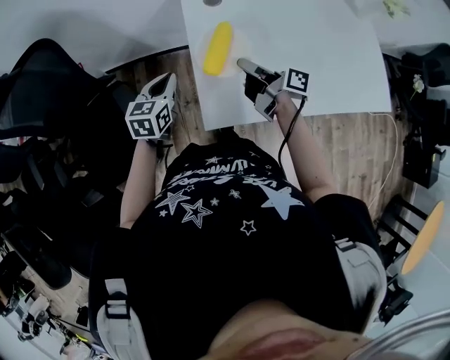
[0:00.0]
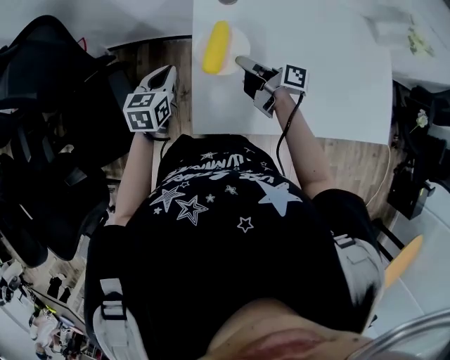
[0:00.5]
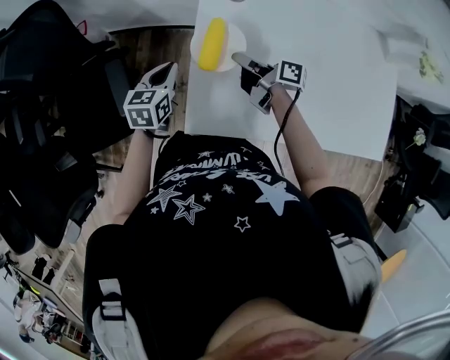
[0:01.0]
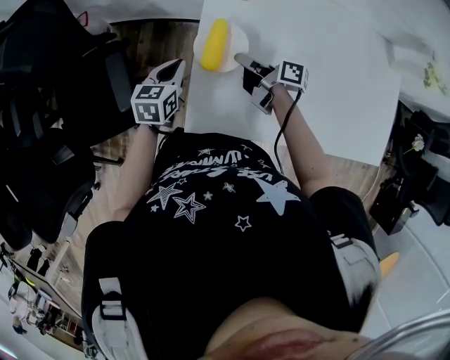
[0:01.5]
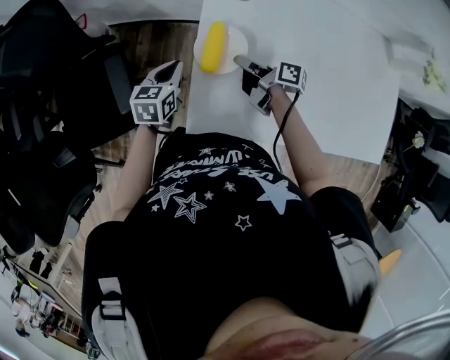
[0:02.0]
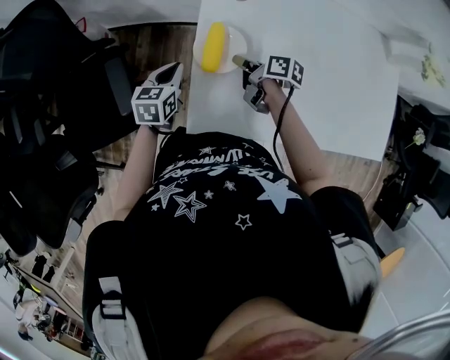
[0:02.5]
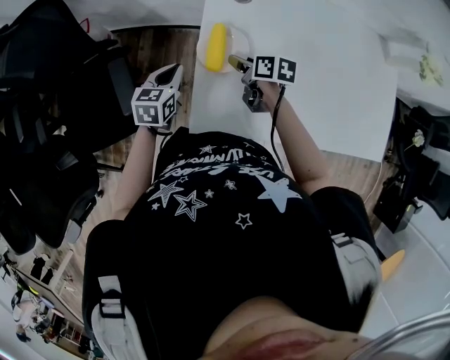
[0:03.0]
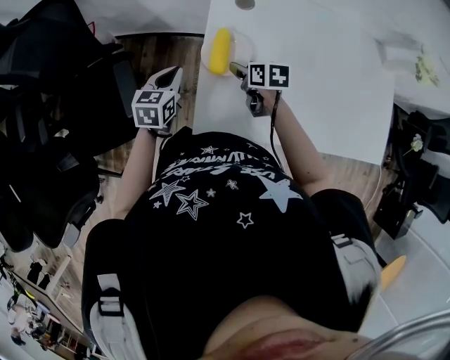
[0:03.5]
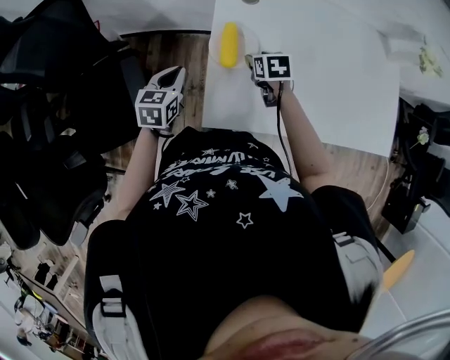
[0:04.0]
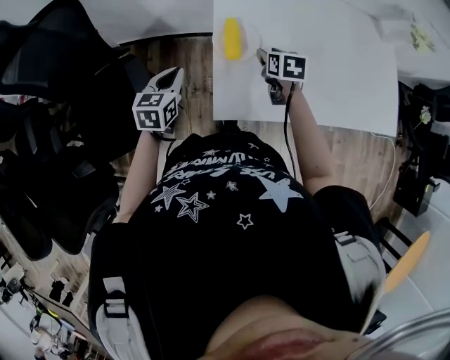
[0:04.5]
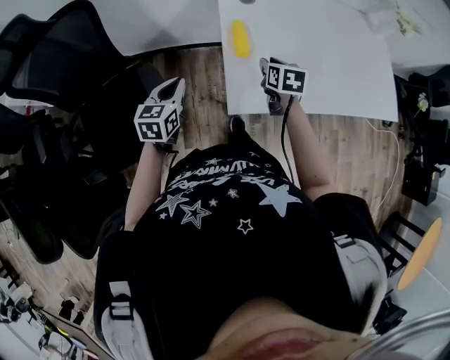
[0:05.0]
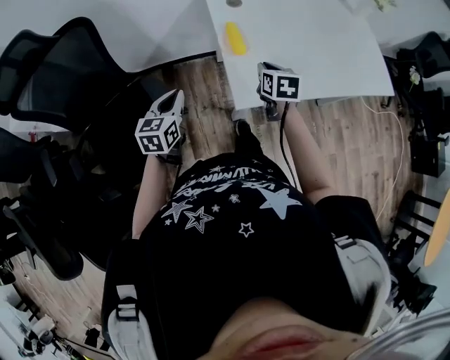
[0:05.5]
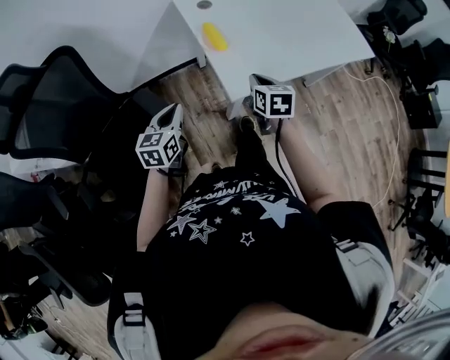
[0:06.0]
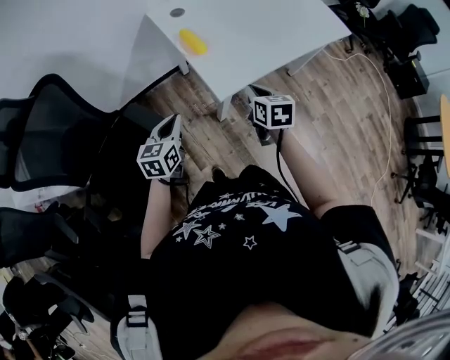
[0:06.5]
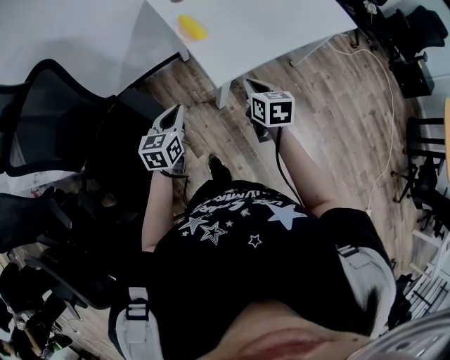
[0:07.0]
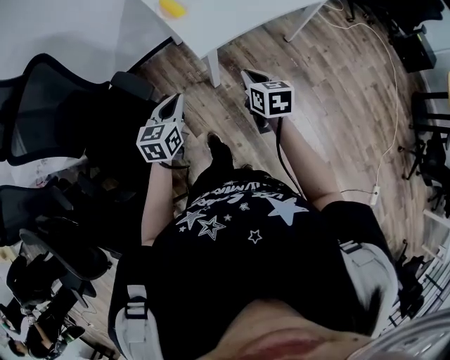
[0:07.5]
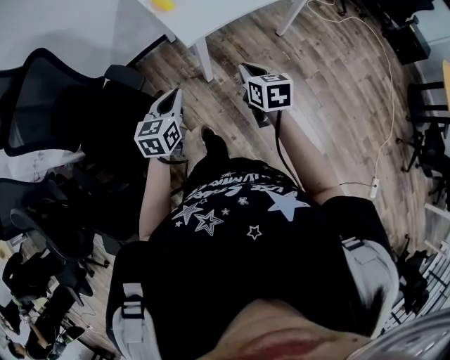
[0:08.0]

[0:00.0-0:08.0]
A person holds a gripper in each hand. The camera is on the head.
0:00.0 to 0:02.0: The right gripper travels downward and forward by about 15 cm, and swivels approximately 20 degrees. The left gripper moves downward, approximately 5 cm.
0:02.0 to 0:04.0: The left gripper is displaced to the left by about 5 cm; the right gripper points its fingers some 40 degrees further downward, and opens.
0:04.0 to 0:06.0: The left gripper changes place by about 20 cm, and rotates roughly 20 degrees; the right gripper moves some 30 cm, rotates some 40 degrees, and closes.
0:06.0 to 0:08.0: The grippers both shift backward and to the right by approximately 25 cm.

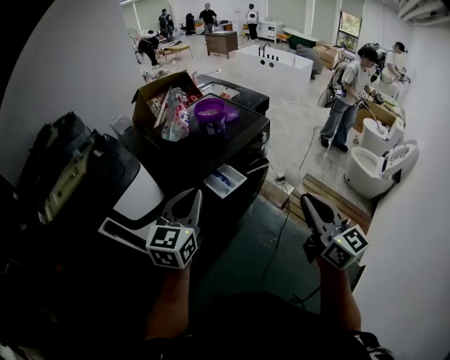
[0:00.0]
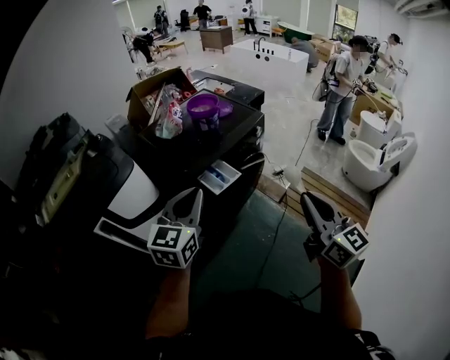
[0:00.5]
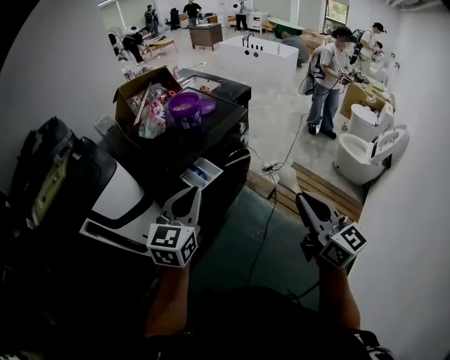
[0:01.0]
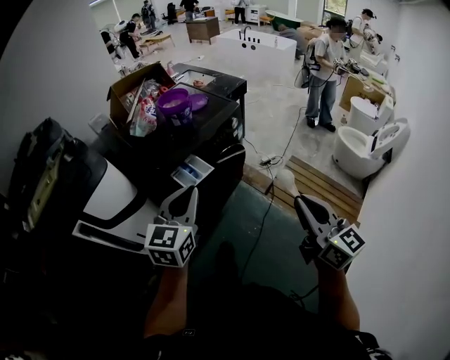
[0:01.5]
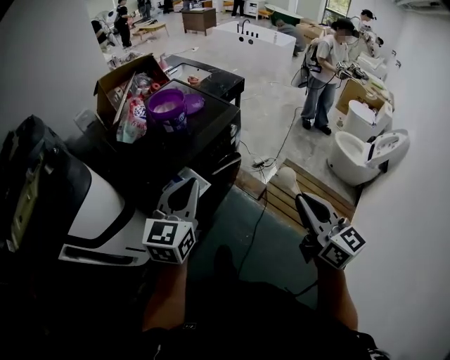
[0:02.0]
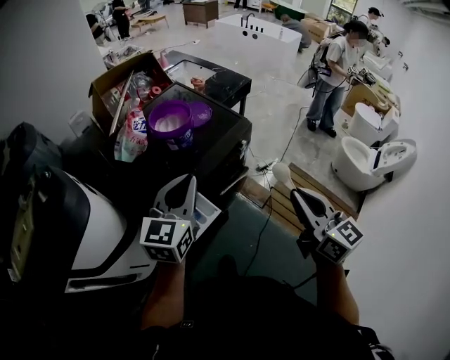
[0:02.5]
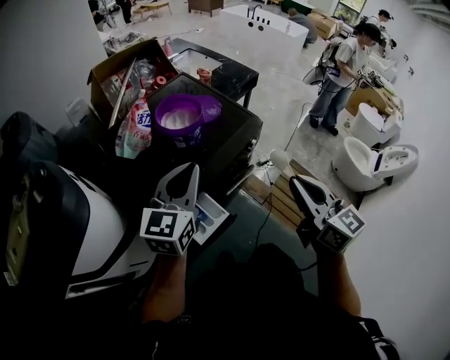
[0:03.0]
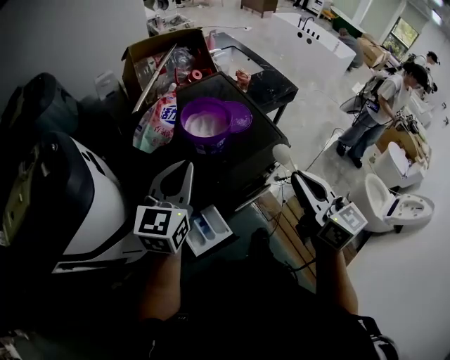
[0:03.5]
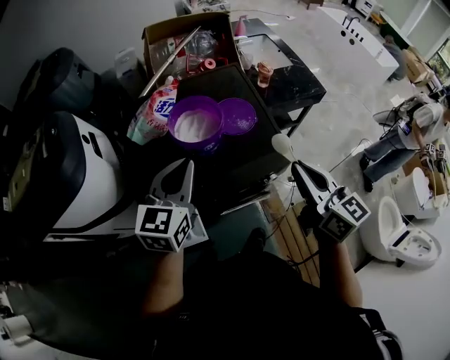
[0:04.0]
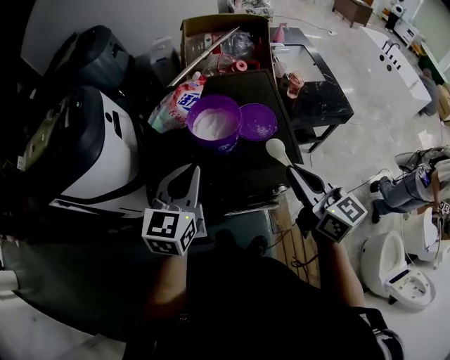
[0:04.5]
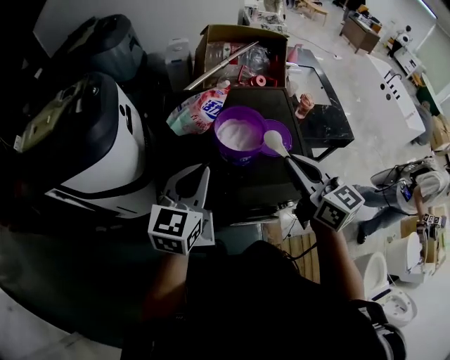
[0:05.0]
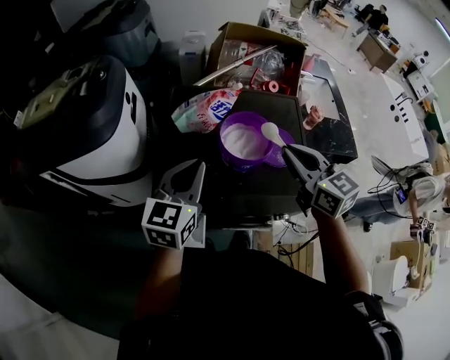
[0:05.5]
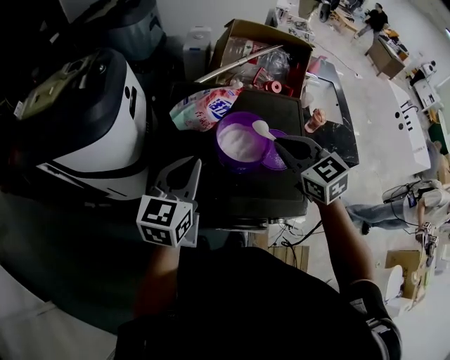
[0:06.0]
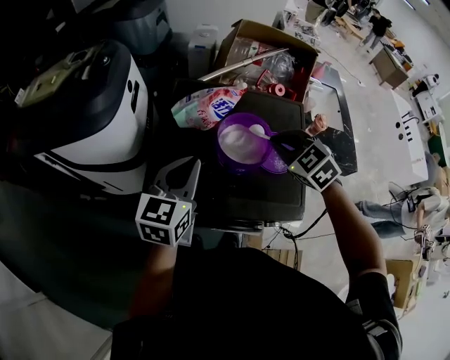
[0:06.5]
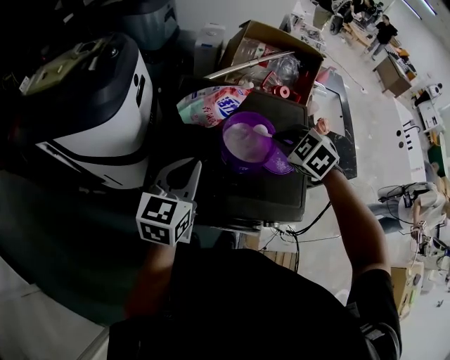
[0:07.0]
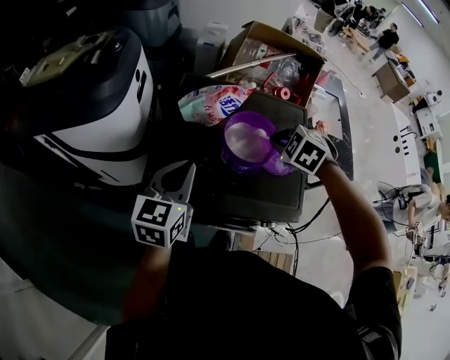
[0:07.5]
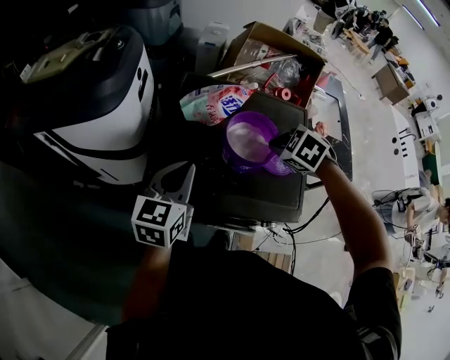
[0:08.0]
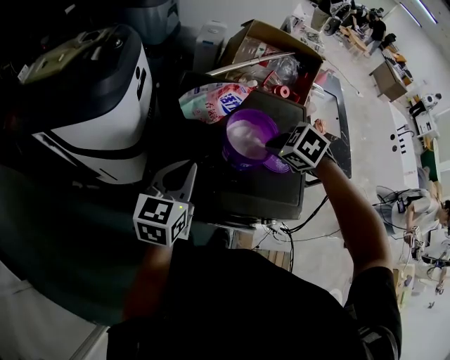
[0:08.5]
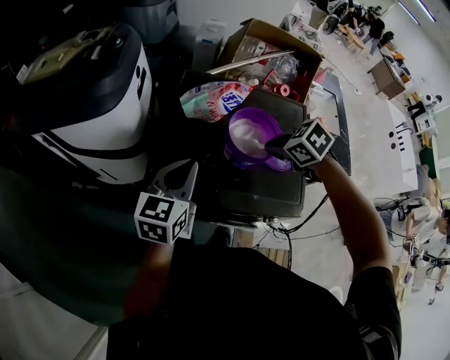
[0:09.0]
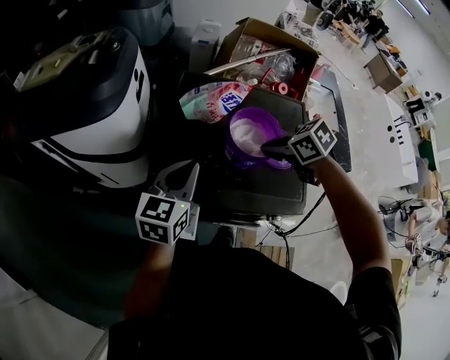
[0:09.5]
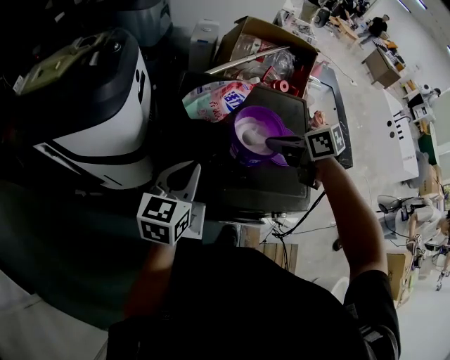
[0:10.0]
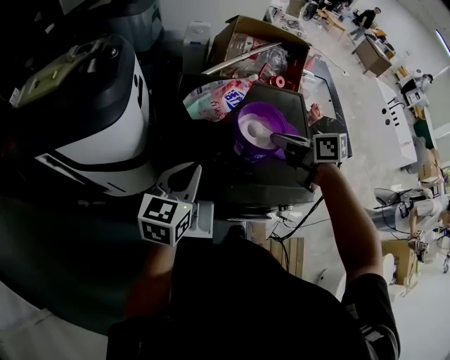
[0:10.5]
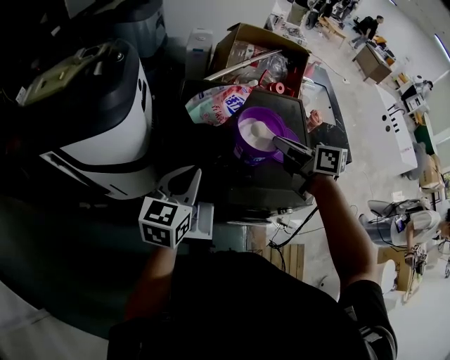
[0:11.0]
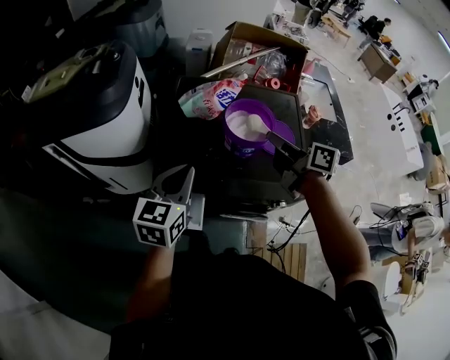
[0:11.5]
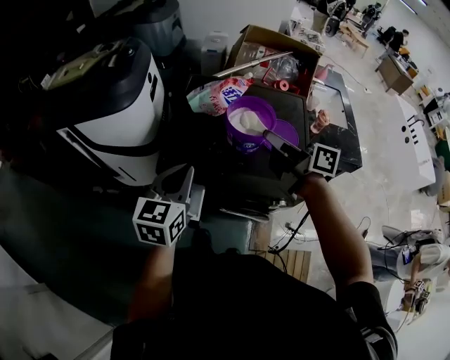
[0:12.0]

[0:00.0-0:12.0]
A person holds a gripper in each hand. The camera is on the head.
0:00.0 to 0:02.0: The right gripper heads to the right, forward and downward, covering approximately 20 cm. The left gripper heads to the right and forward, covering some 20 cm.
0:02.0 to 0:04.0: The right gripper changes place by about 50 cm, and turns by about 30 degrees. Meanwhile the left gripper shifts by about 35 cm, and turns by roughly 30 degrees.
0:04.0 to 0:06.0: The right gripper travels forward and to the left by about 25 cm, and rotates about 50 degrees, while the left gripper shifts about 5 cm to the left, and swivels about 20 degrees.
0:06.0 to 0:08.0: The right gripper shifts about 10 cm downward, and tips its fingers downward by approximately 40 degrees, while the left gripper changes place by roughly 5 cm.
0:08.0 to 0:10.0: The right gripper tilts its fingers about 30 degrees upward.
0:10.0 to 0:12.0: The left gripper shifts some 10 cm backward, while the right gripper shifts about 10 cm backward and upward, and tilts its fingers approximately 40 degrees upward.

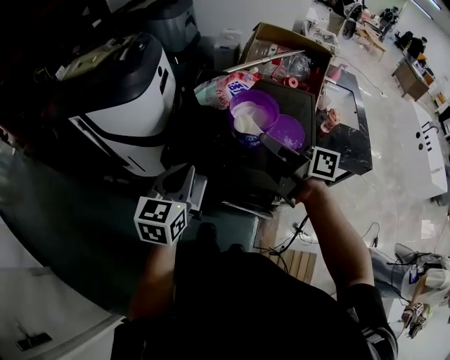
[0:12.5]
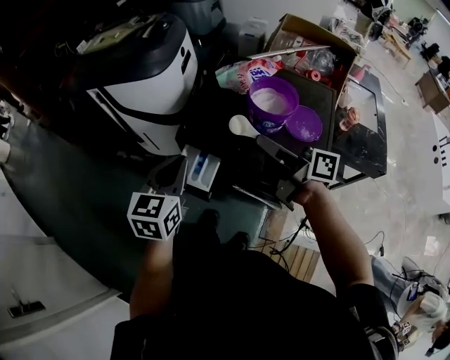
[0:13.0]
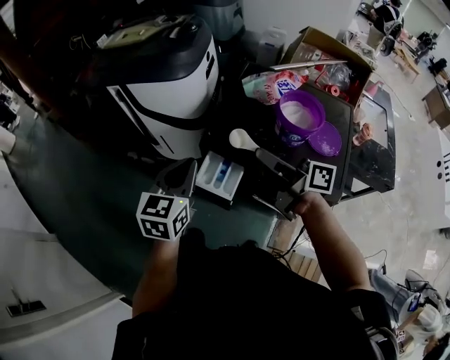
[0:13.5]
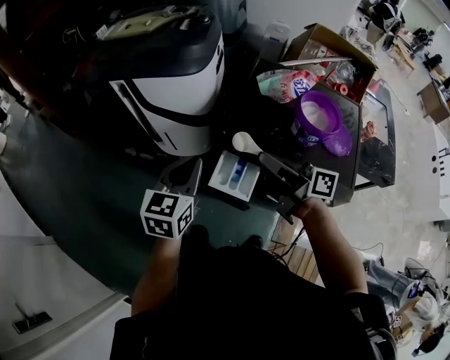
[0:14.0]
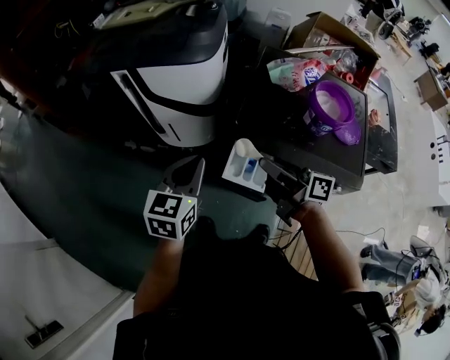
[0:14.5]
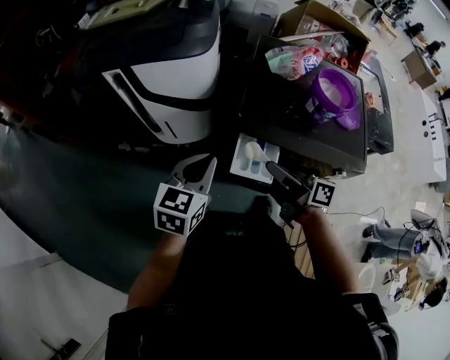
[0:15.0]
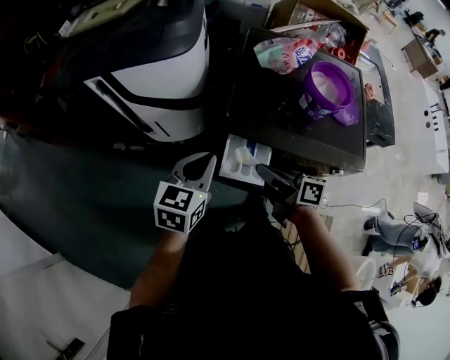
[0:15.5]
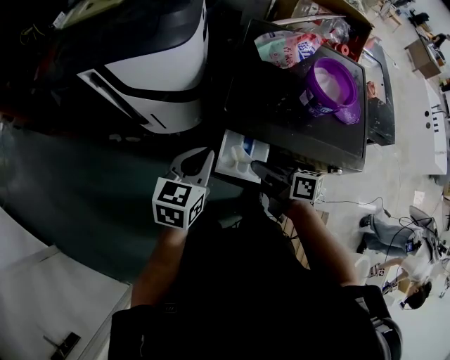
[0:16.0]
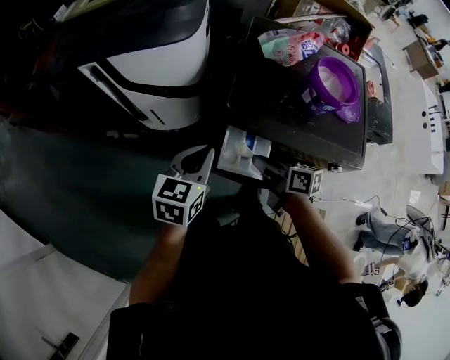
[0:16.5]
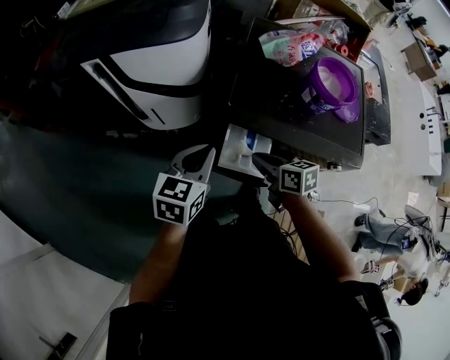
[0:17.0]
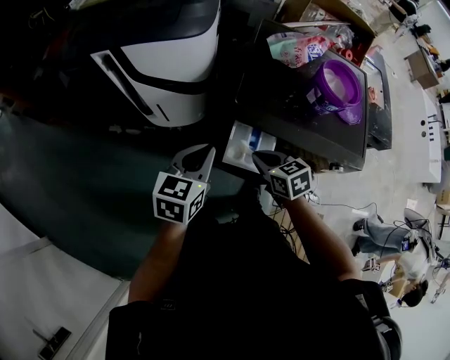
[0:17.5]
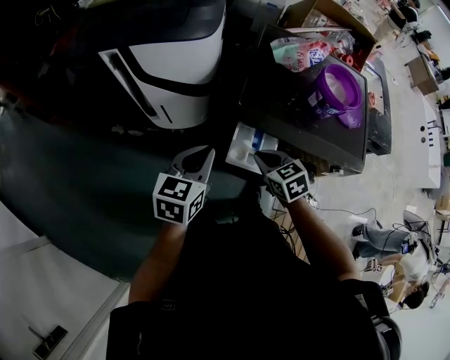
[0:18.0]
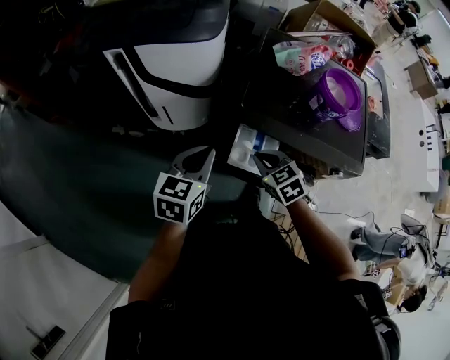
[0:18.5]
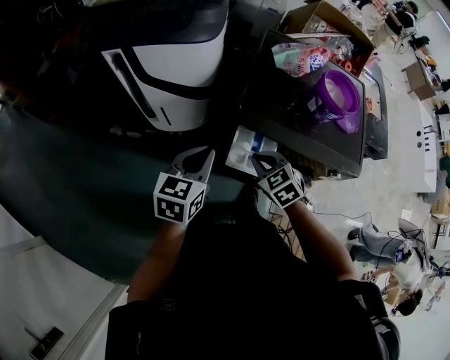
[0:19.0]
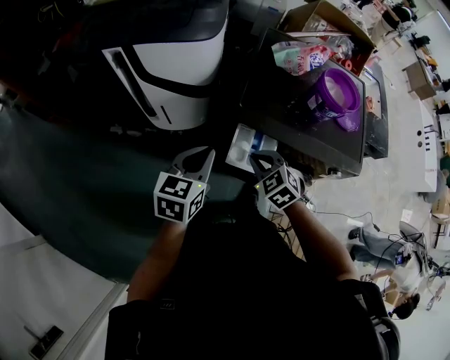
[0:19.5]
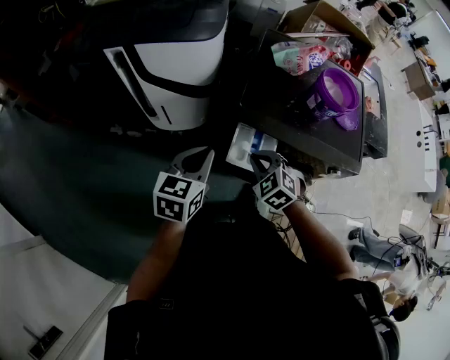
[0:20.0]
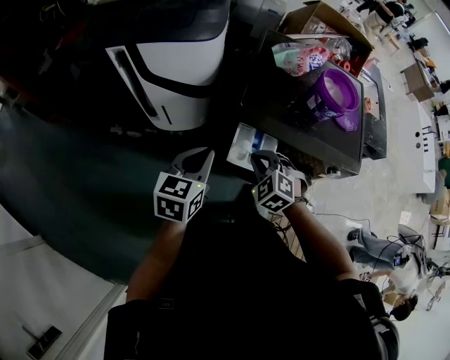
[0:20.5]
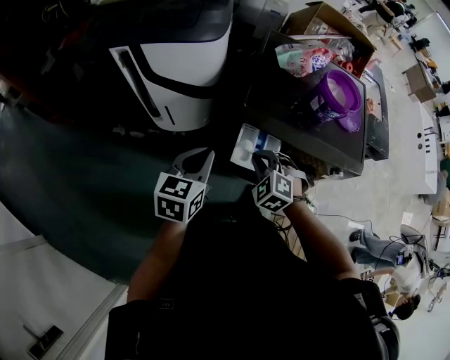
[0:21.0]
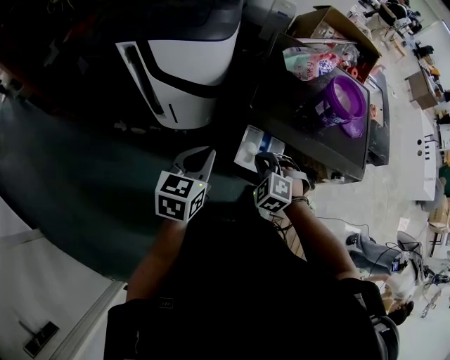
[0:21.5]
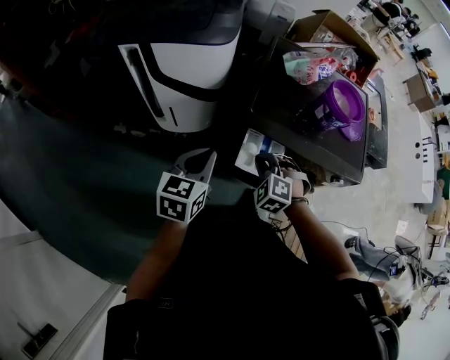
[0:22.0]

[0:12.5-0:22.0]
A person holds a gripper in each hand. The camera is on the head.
0:12.5 to 0:14.5: The grippers both shift to the left by approximately 25 cm.
0:14.5 to 0:16.5: The left gripper shifts some 5 cm downward; the right gripper heads downward, covering roughly 15 cm, and turns by approximately 30 degrees.
0:16.5 to 0:18.0: The right gripper rolls counterclockwise, seen from behind, by roughly 40 degrees.
0:18.0 to 0:20.0: The right gripper turns by some 30 degrees.
0:20.0 to 0:22.0: The right gripper rotates some 20 degrees.
